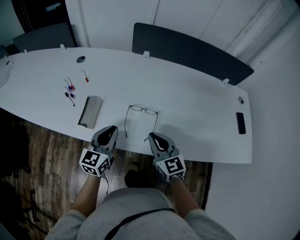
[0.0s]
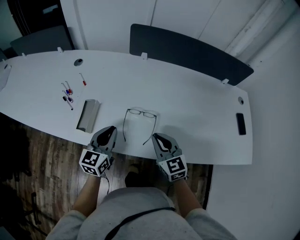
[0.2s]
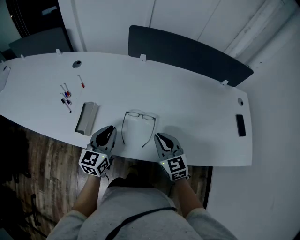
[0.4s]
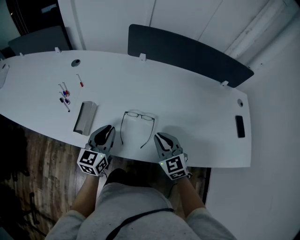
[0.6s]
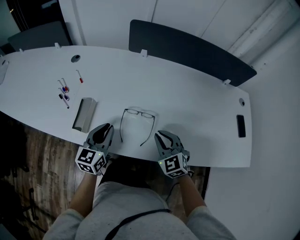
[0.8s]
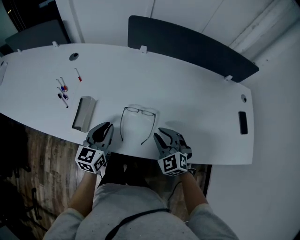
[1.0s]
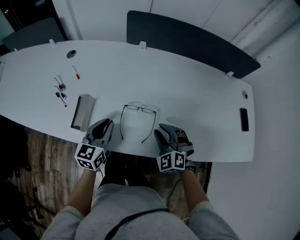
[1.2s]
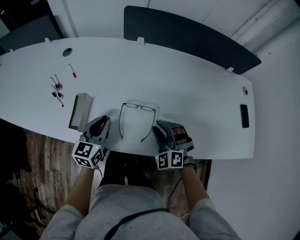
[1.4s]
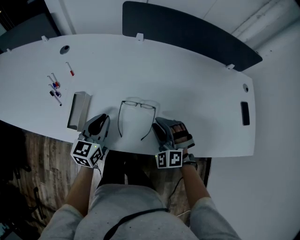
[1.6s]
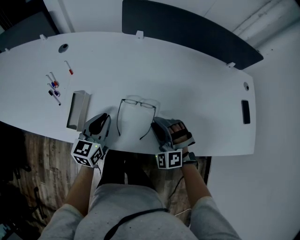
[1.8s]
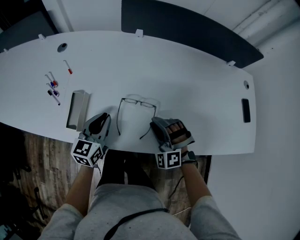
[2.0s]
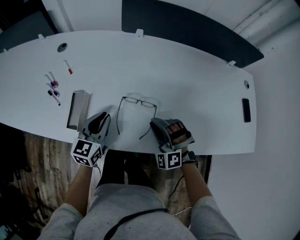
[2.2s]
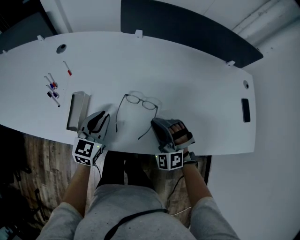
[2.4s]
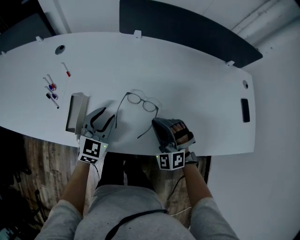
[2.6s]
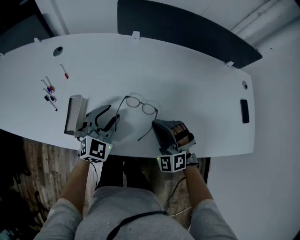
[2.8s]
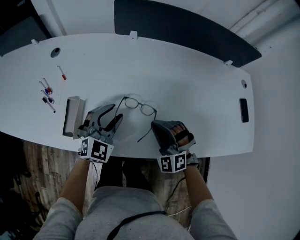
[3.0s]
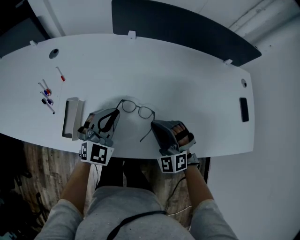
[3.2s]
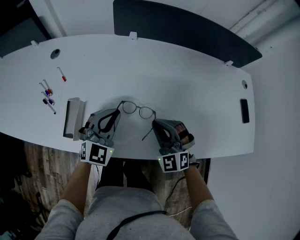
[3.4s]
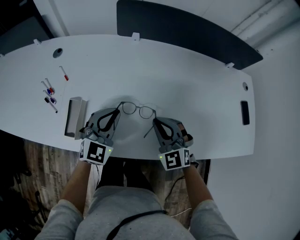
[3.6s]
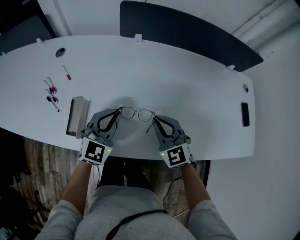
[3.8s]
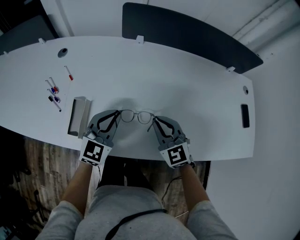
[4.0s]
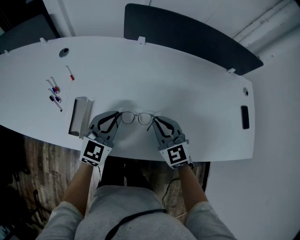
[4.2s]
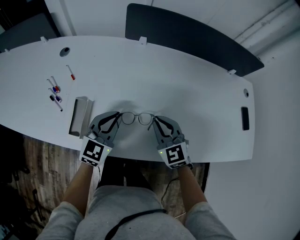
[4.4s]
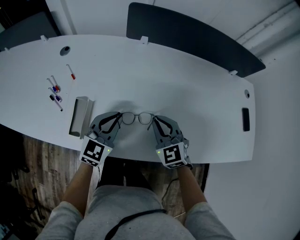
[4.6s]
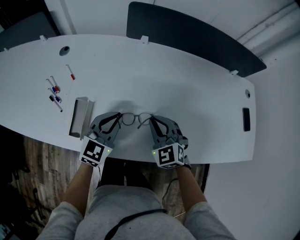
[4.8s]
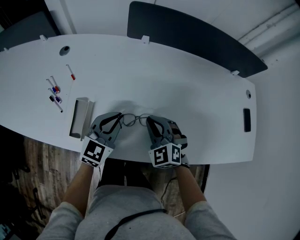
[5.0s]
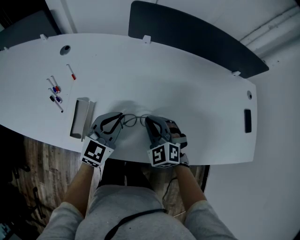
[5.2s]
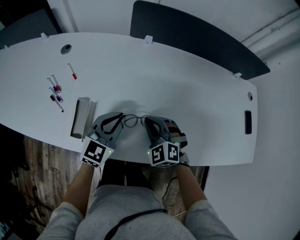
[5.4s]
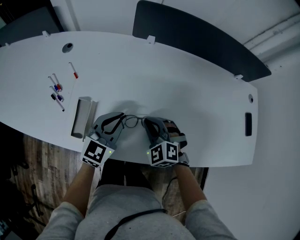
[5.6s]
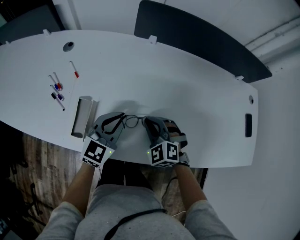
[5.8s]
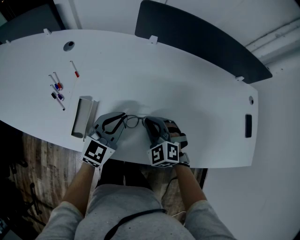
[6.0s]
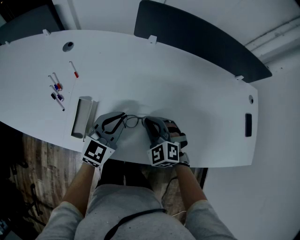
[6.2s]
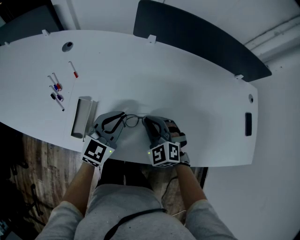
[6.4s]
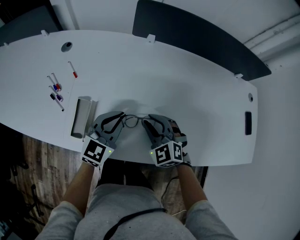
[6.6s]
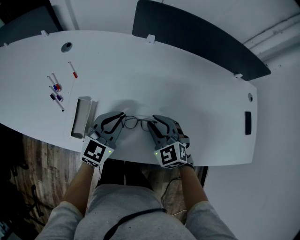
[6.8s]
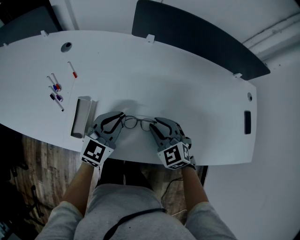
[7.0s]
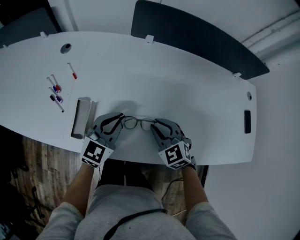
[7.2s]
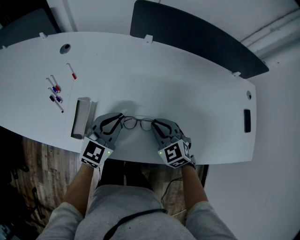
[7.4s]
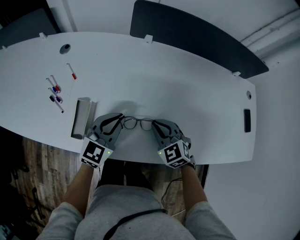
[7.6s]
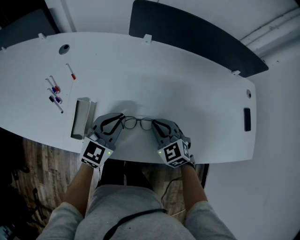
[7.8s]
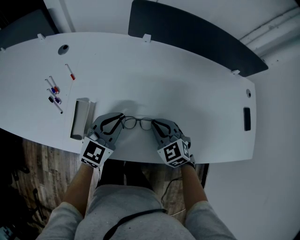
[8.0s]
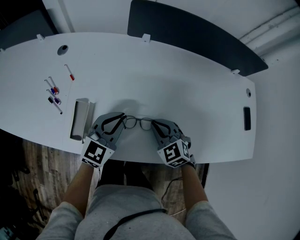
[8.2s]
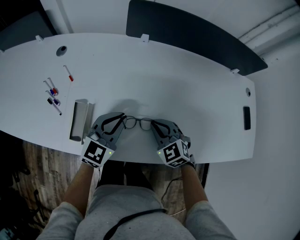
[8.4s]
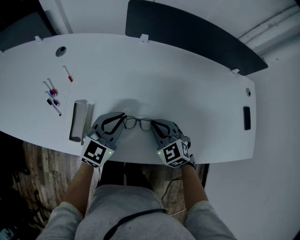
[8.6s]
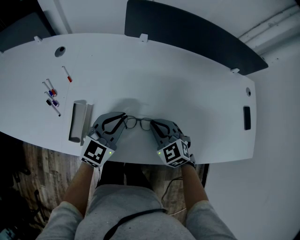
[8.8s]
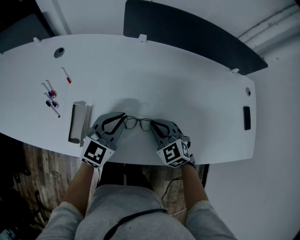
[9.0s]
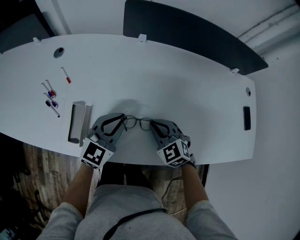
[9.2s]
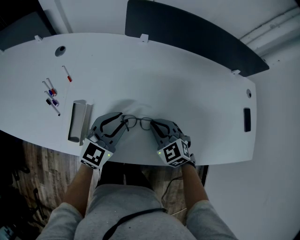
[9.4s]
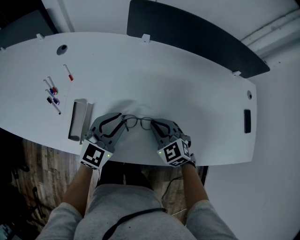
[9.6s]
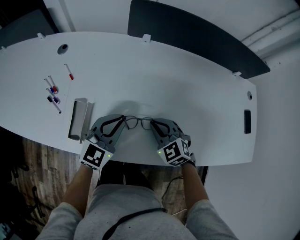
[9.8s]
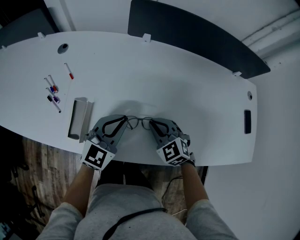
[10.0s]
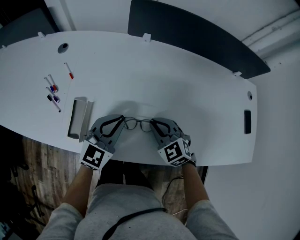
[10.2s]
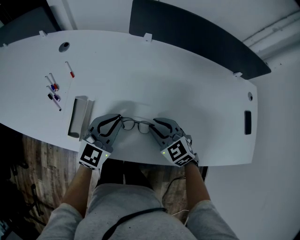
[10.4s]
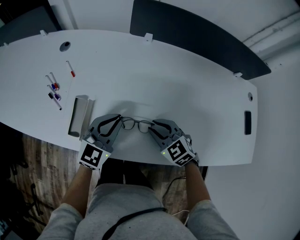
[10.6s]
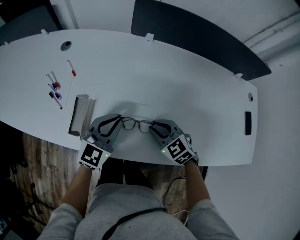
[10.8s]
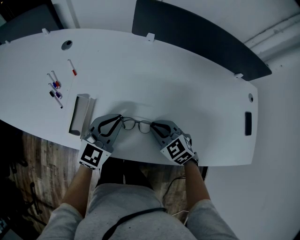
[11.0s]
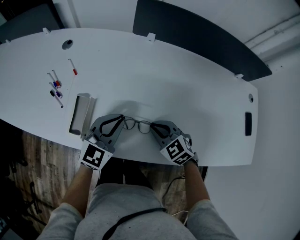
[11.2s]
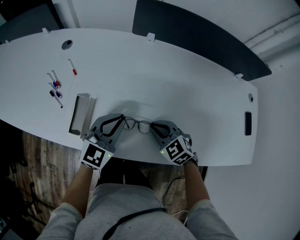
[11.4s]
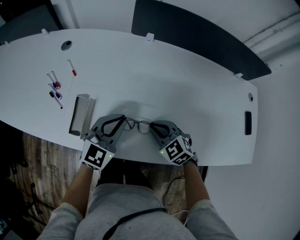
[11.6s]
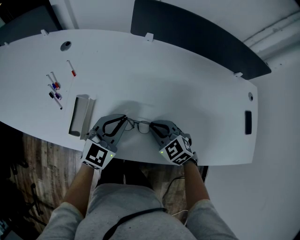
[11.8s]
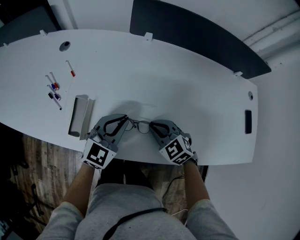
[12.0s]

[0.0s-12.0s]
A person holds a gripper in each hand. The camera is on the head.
0.0s to 1.6s: The right gripper travels downward and forward by roughly 10 cm, twists some 60 degrees counterclockwise, seen from behind, and opens up, while the left gripper shifts some 10 cm forward and downward.
1.6s to 3.0s: The right gripper closes; the left gripper goes some 5 cm to the right, rolls clockwise, seen from behind, by about 50 degrees, and opens its fingers.
3.0s to 4.4s: The right gripper twists about 40 degrees clockwise, seen from behind; the left gripper swivels approximately 20 degrees, and closes its fingers.
4.4s to 6.0s: The right gripper is displaced to the left and downward by approximately 10 cm, and changes its angle by roughly 30 degrees.
6.0s to 9.0s: The grippers make only small movements.
9.0s to 12.0s: The grippers stay close to where they were, moving slightly.

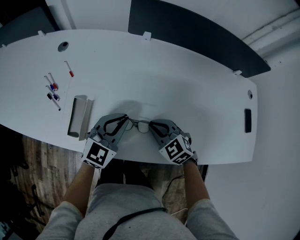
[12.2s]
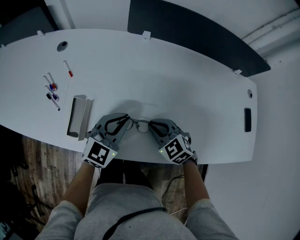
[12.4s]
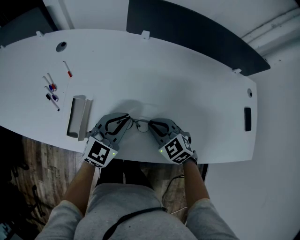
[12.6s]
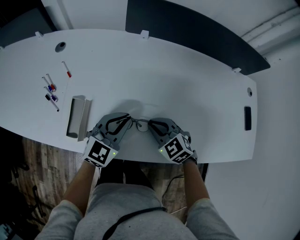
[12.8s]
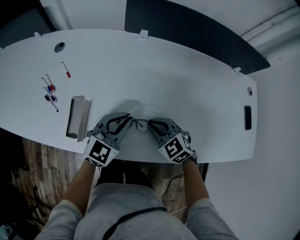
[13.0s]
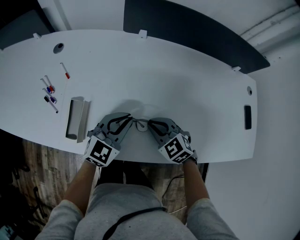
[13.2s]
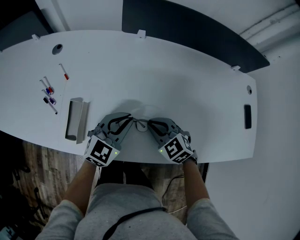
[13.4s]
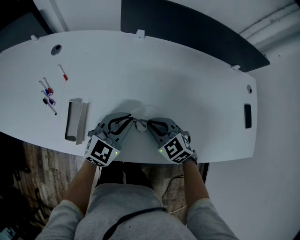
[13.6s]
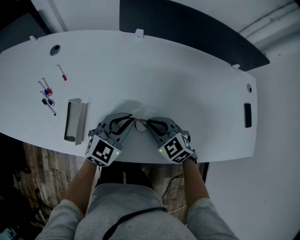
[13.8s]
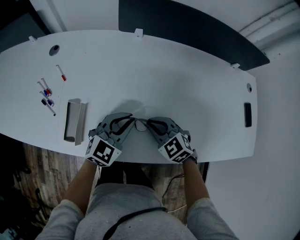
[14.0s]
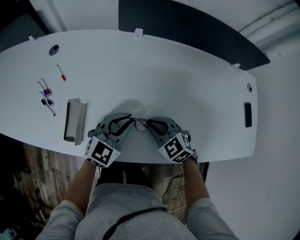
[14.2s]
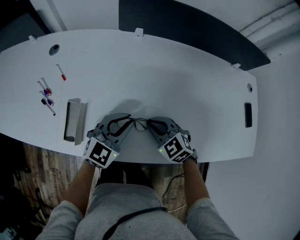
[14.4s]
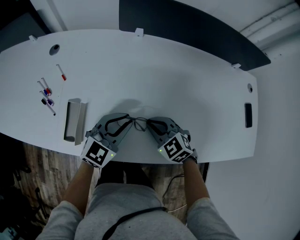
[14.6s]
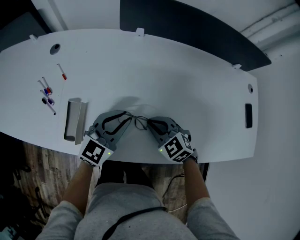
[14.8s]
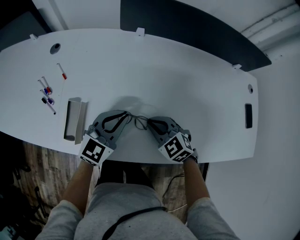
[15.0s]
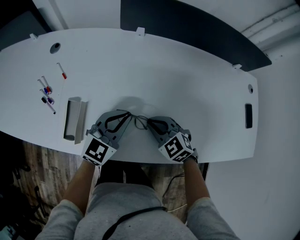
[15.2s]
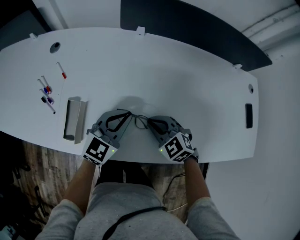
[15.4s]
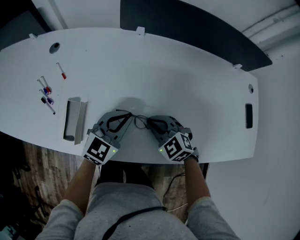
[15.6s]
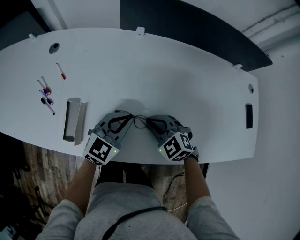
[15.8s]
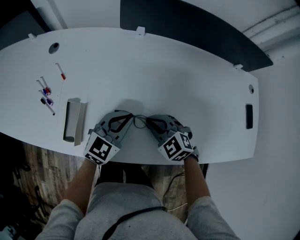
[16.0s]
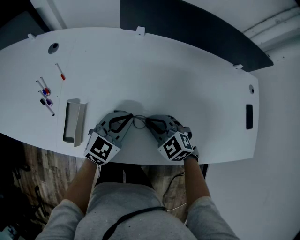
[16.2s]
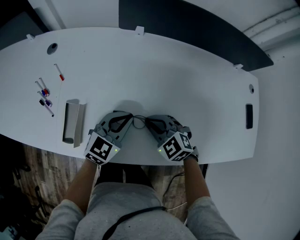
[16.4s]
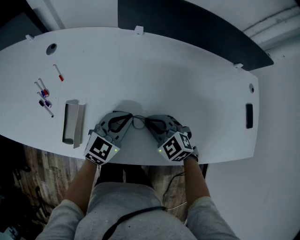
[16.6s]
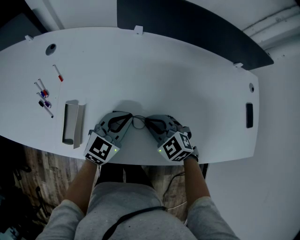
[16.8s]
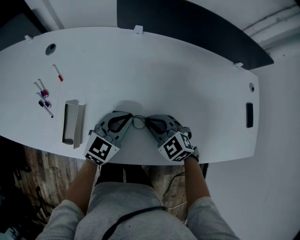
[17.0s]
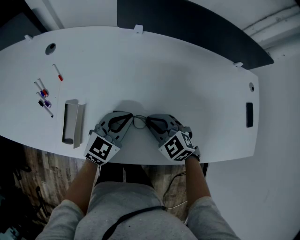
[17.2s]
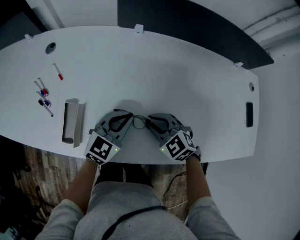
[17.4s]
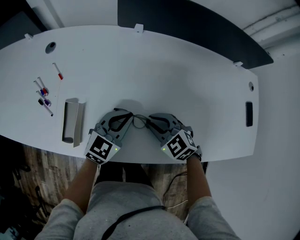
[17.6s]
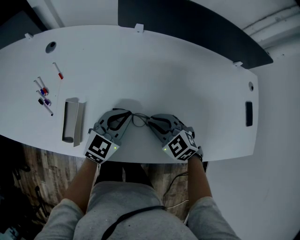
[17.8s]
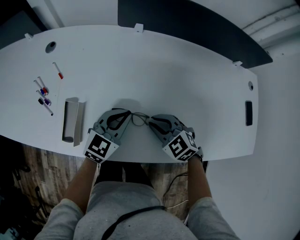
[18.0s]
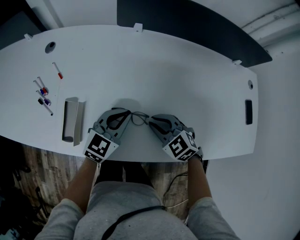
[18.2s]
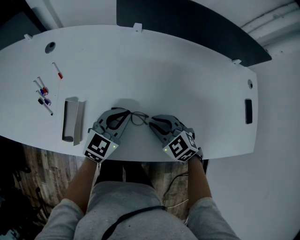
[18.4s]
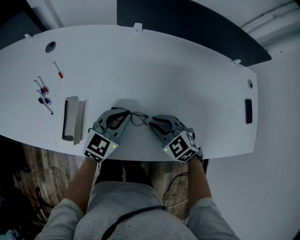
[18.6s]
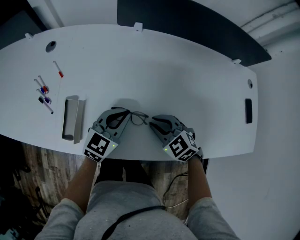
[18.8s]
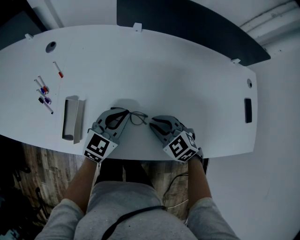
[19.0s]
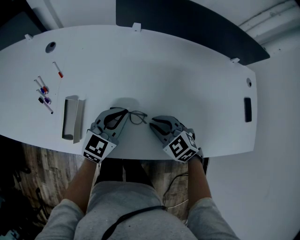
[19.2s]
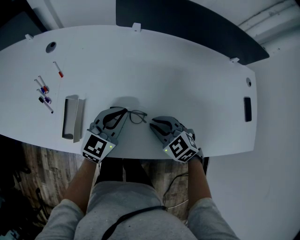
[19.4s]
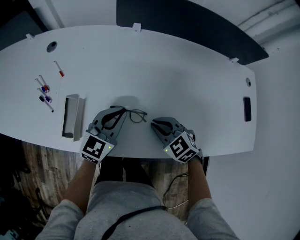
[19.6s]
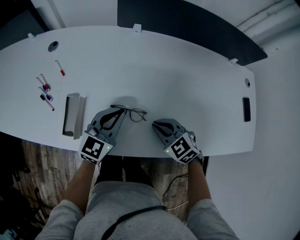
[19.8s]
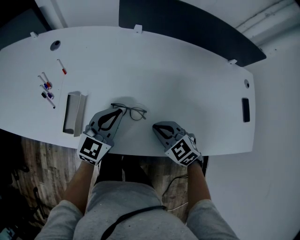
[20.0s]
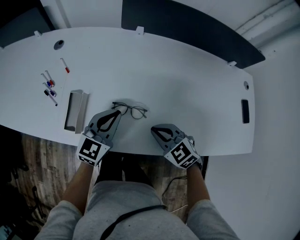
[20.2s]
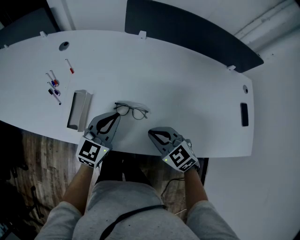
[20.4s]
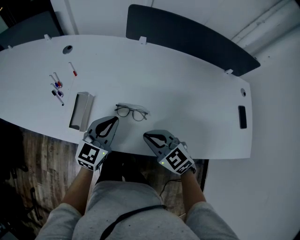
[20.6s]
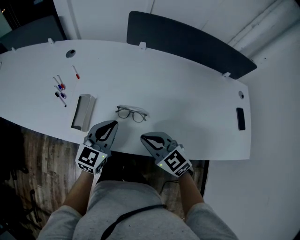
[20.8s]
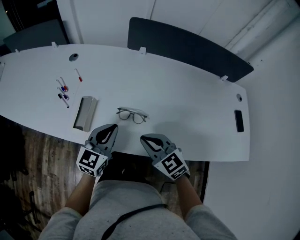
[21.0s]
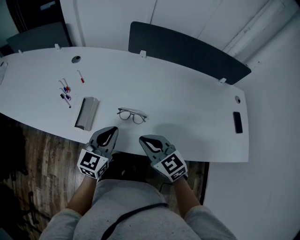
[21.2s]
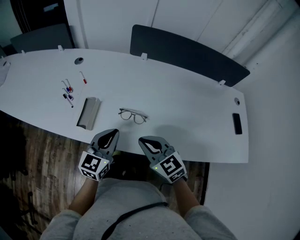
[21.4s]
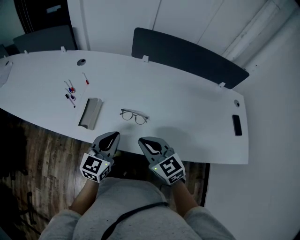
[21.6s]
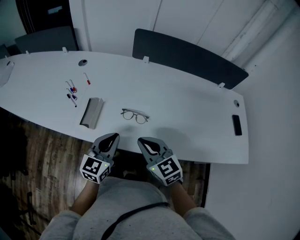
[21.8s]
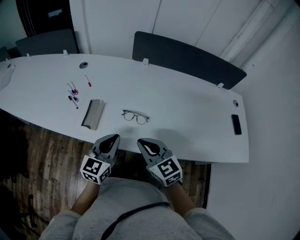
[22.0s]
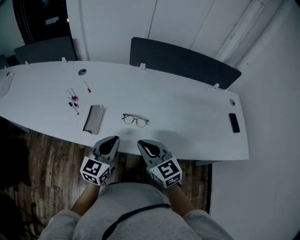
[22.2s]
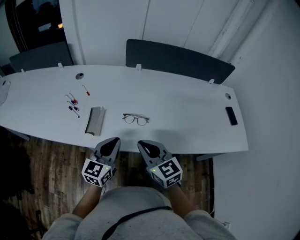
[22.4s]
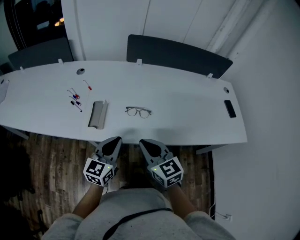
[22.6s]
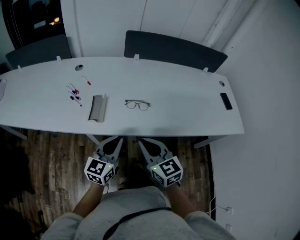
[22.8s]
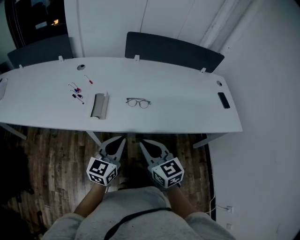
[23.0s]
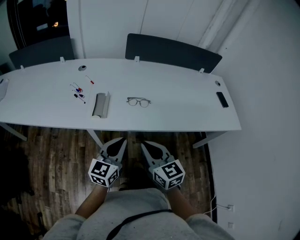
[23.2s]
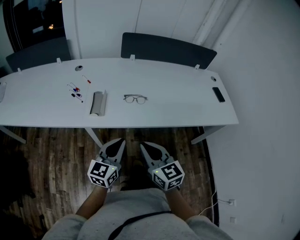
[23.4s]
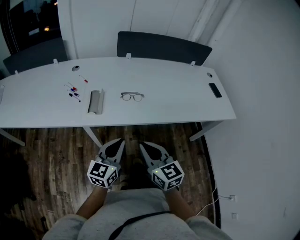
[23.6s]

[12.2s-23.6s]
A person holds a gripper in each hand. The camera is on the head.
12.2s to 16.4s: There are only small adjustments of the grippers.
16.4s to 19.4s: The grippers stay close to where they were, moving slightly.
19.4s to 20.8s: The right gripper is displaced upward, backward and to the left by approximately 15 cm. Meanwhile the left gripper is displaced backward, to the left and upward by about 10 cm.
20.8s to 22.2s: The right gripper travels upward and backward by approximately 10 cm, and rotates some 20 degrees, while the left gripper shifts roughly 10 cm backward.
22.2s to 23.6s: Both grippers move backward, roughly 20 cm. The right gripper turns by roughly 20 degrees.

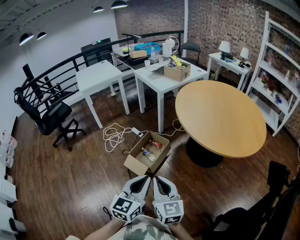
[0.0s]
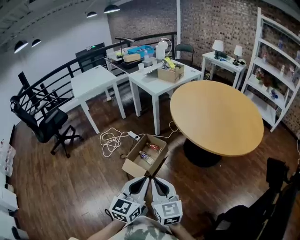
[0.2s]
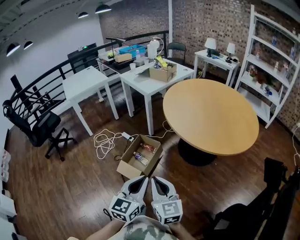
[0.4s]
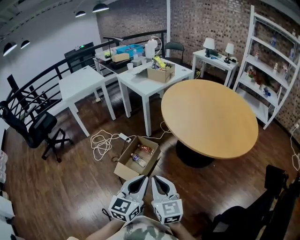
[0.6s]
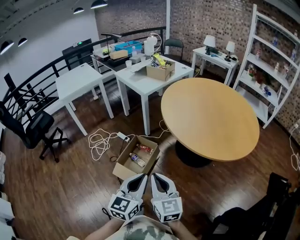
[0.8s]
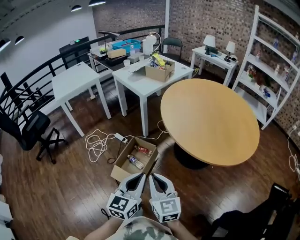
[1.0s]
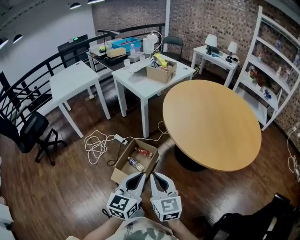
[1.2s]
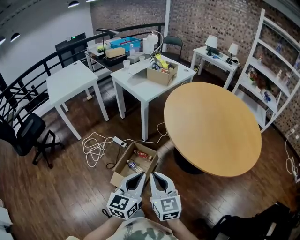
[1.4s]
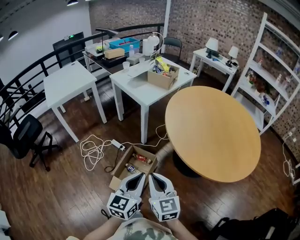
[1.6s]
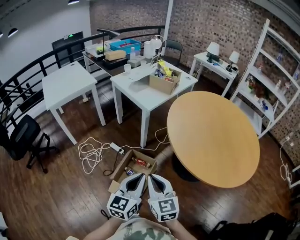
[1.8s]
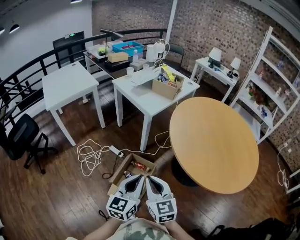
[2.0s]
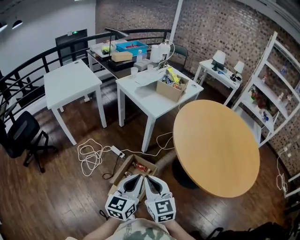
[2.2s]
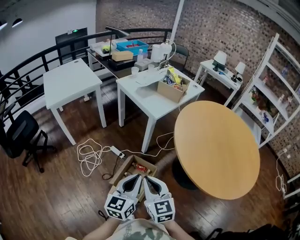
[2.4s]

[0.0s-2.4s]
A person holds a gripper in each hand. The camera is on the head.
0.0s to 1.2s: The grippers both shift forward by roughly 20 cm.
1.2s to 2.4s: Both grippers move forward and to the left, approximately 25 cm.
